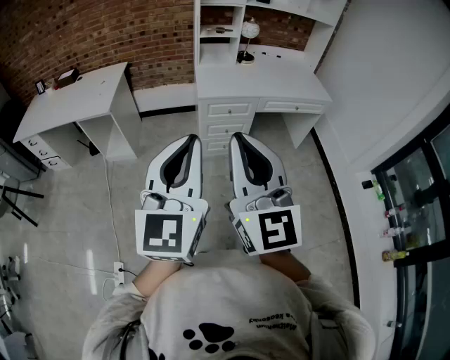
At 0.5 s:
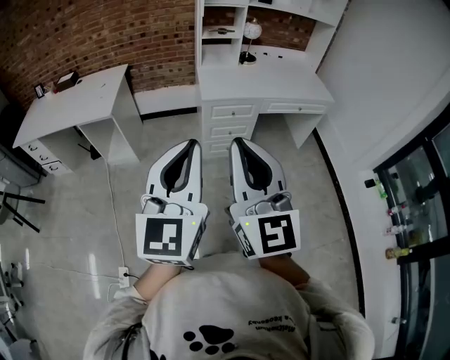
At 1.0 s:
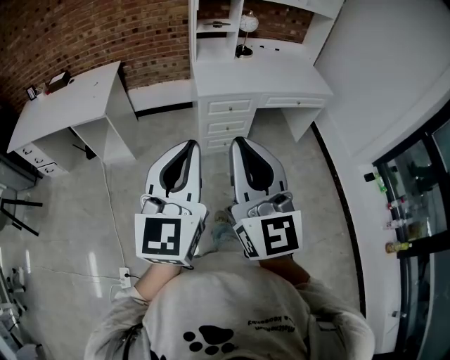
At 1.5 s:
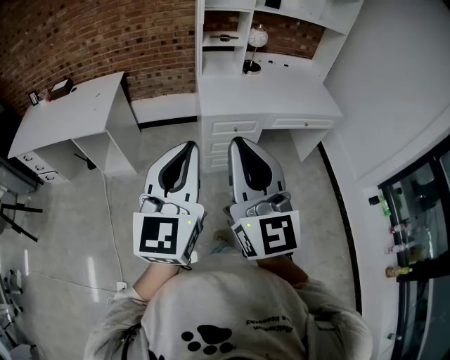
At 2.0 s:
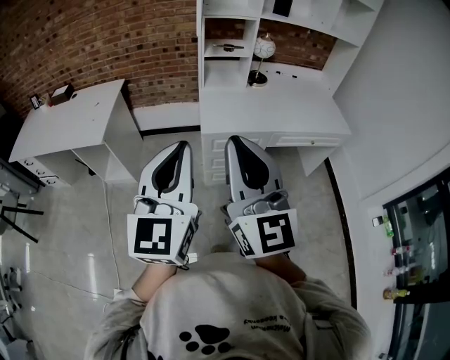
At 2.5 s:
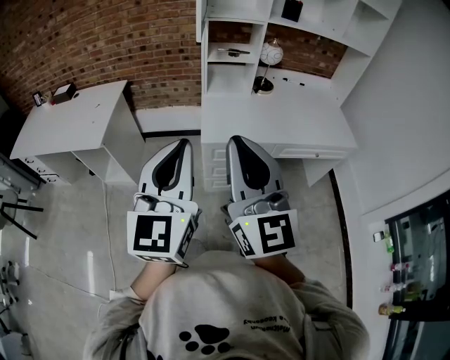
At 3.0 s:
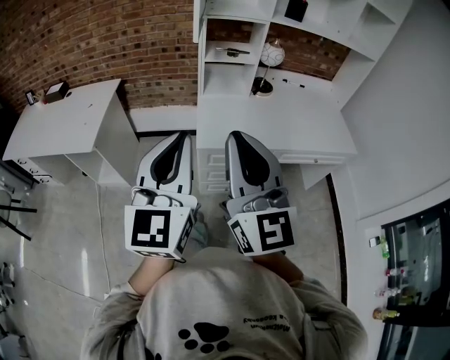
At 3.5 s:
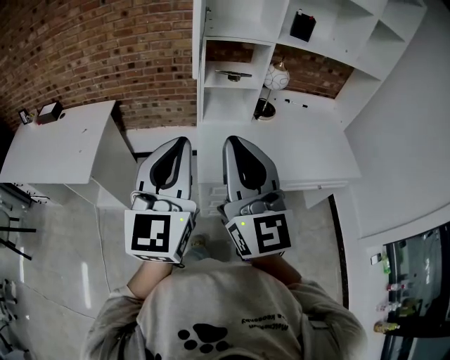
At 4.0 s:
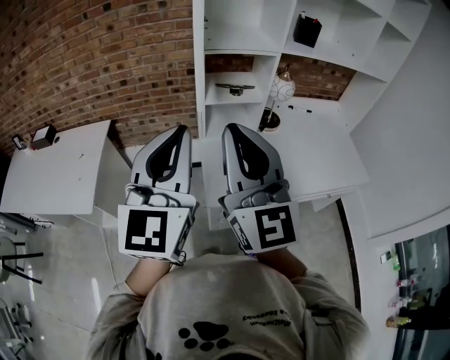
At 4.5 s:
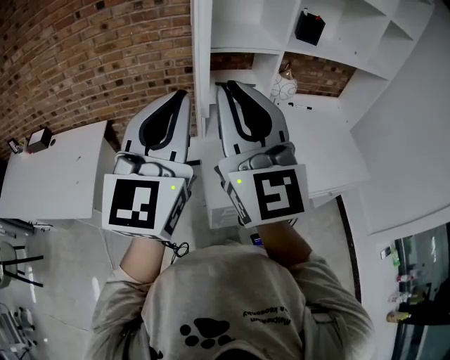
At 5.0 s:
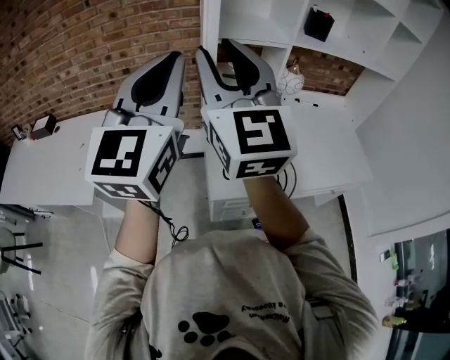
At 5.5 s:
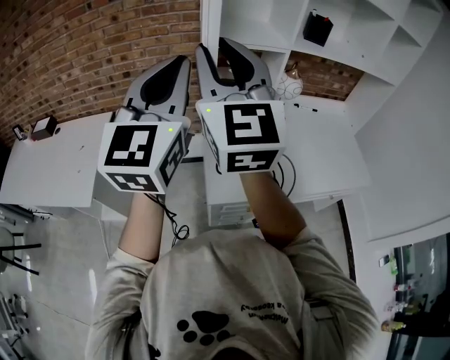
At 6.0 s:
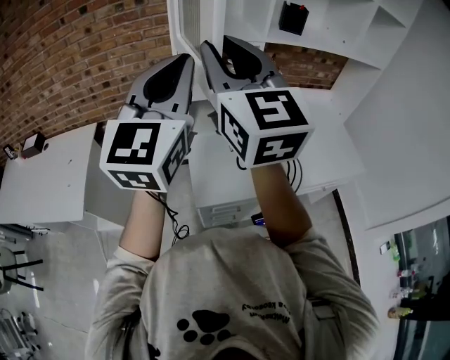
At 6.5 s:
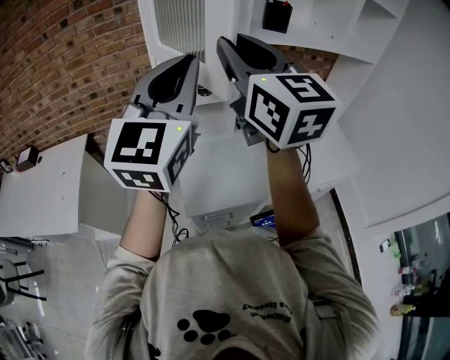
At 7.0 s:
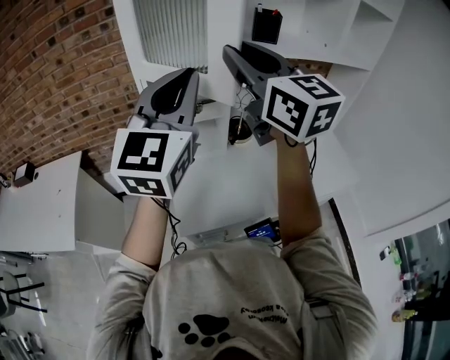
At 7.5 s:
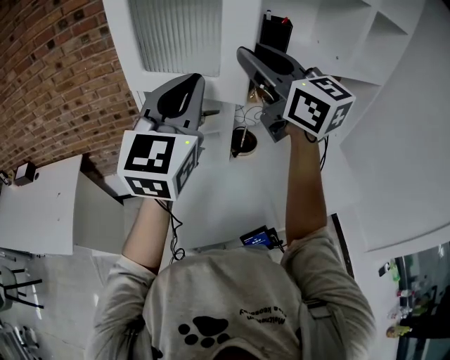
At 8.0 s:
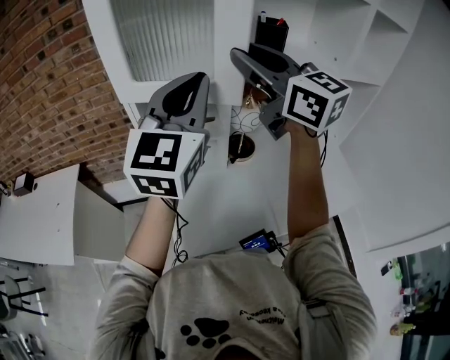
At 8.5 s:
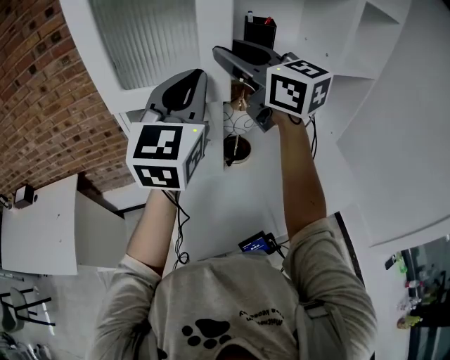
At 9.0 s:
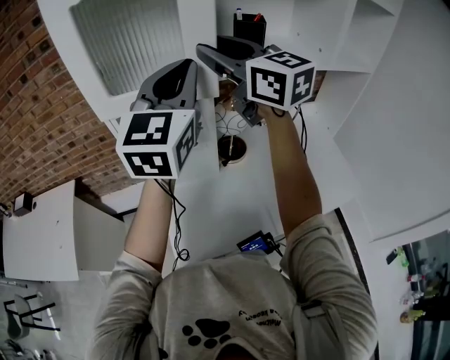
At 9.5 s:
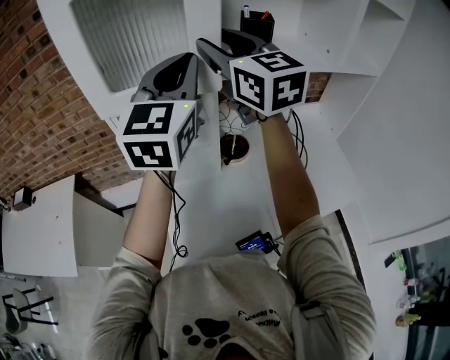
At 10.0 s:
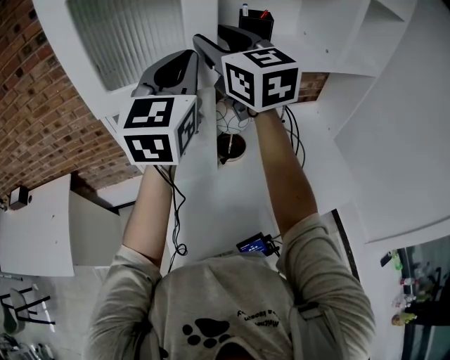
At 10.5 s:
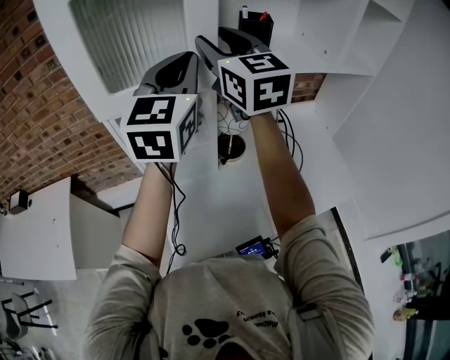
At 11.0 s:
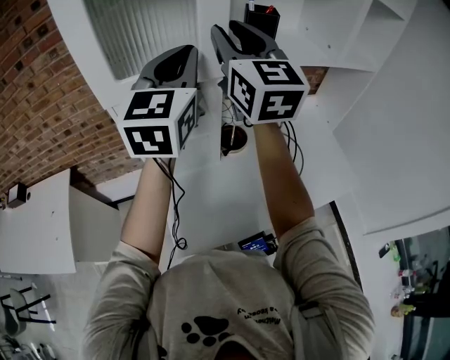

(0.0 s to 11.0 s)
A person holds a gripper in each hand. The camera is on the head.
0.0 s - 2.0 s: Both grippers travel together forward, some 30 cm.
2.0 s - 3.5 s: The grippers both shift forward by approximately 25 cm.
3.5 s - 5.5 s: Both grippers travel together forward and upward, about 25 cm. The right gripper opens its fingers.
5.5 s - 7.5 s: The two grippers go some 30 cm to the right and forward. The right gripper changes its angle by about 20 degrees.
7.5 s - 9.0 s: The left gripper travels forward and to the right by roughly 10 cm, while the right gripper travels forward by roughly 10 cm.
9.0 s - 11.0 s: The right gripper swivels about 30 degrees.

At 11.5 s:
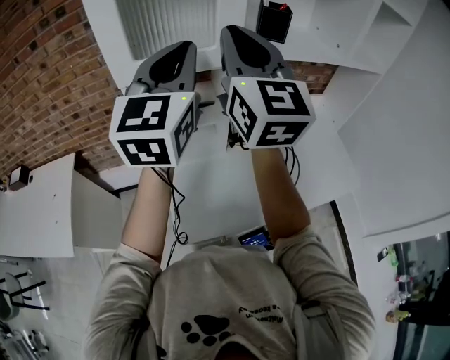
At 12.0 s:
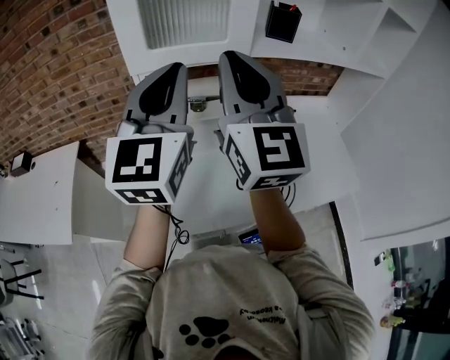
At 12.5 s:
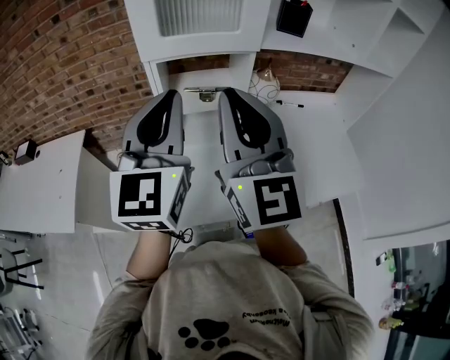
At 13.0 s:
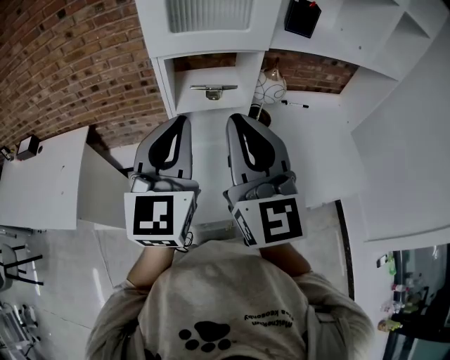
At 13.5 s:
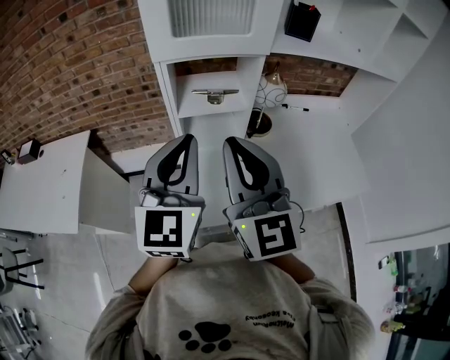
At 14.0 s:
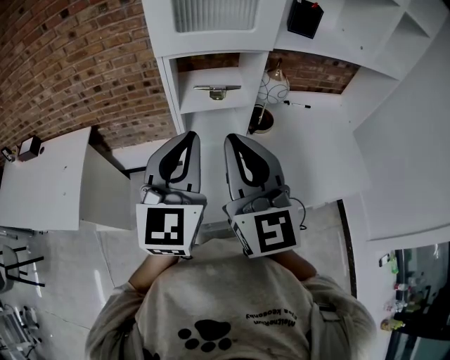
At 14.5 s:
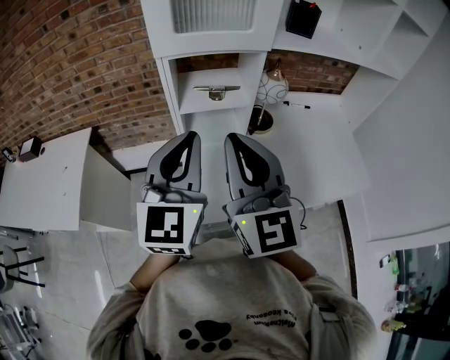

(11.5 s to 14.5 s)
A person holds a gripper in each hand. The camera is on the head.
11.5 s - 13.0 s: The right gripper shifts some 20 cm backward and downward, while the left gripper moves backward, downward and to the left, approximately 20 cm.
13.0 s - 14.5 s: There are only small adjustments of the grippers.

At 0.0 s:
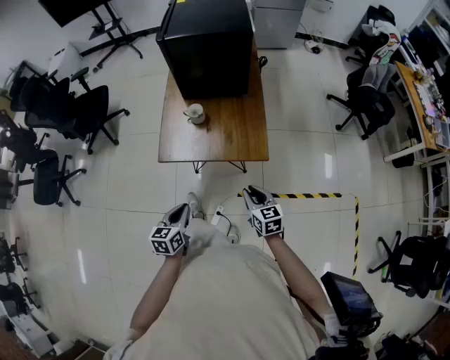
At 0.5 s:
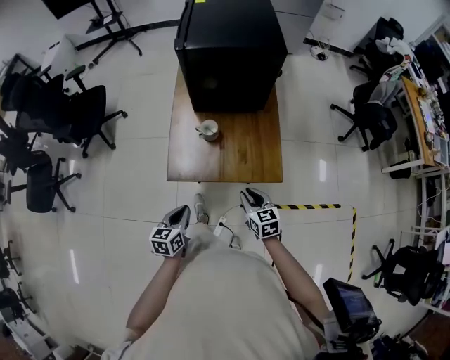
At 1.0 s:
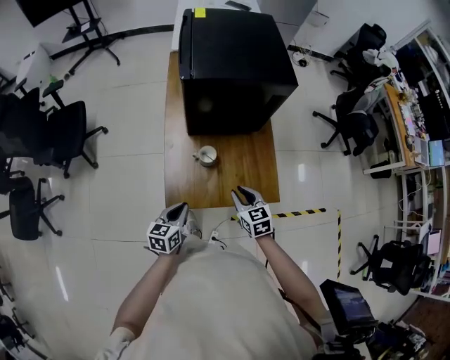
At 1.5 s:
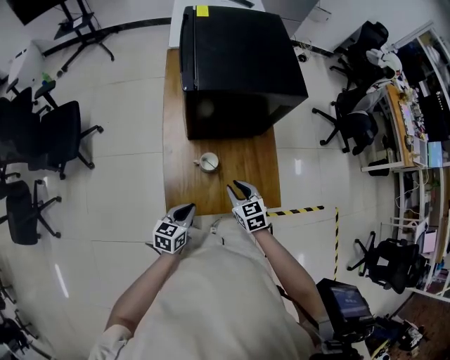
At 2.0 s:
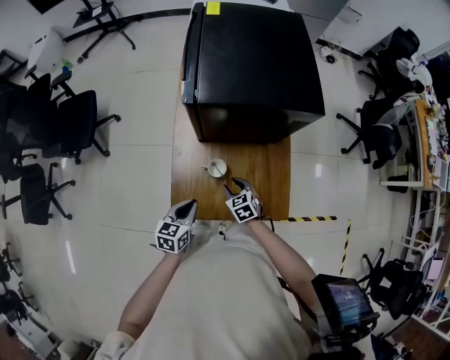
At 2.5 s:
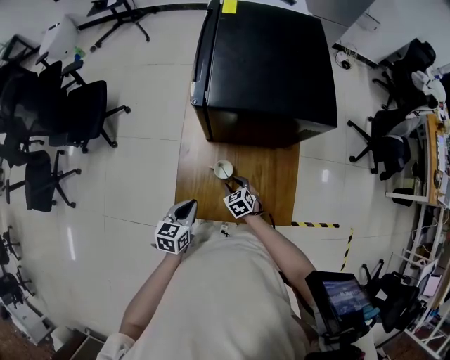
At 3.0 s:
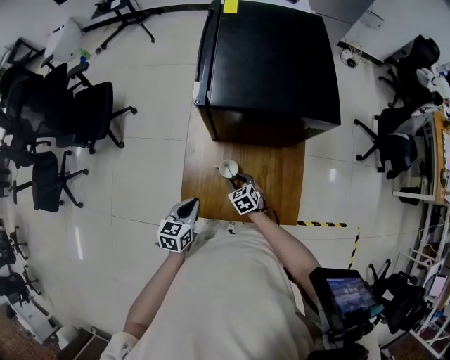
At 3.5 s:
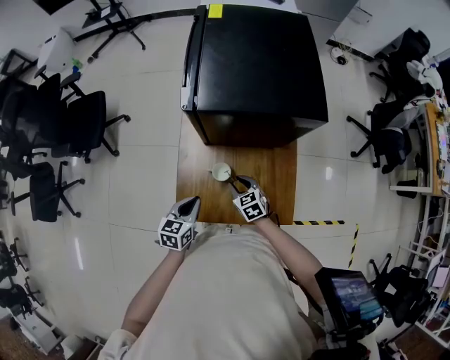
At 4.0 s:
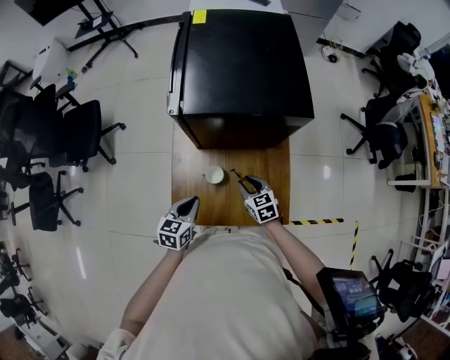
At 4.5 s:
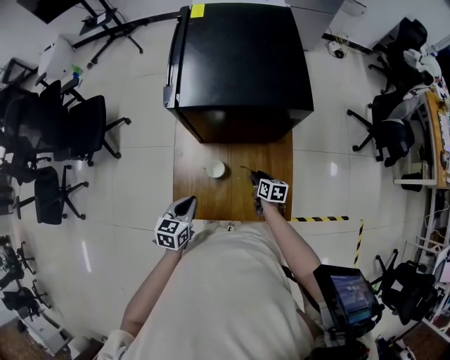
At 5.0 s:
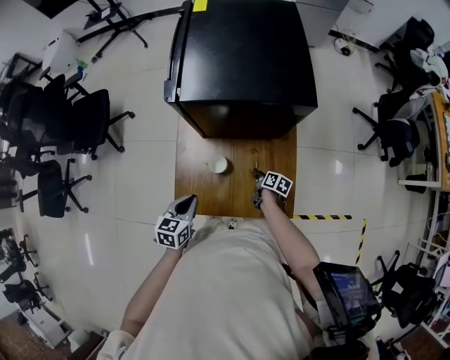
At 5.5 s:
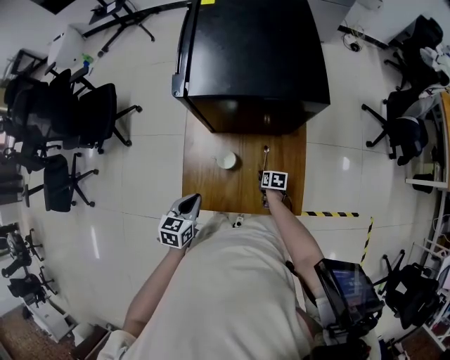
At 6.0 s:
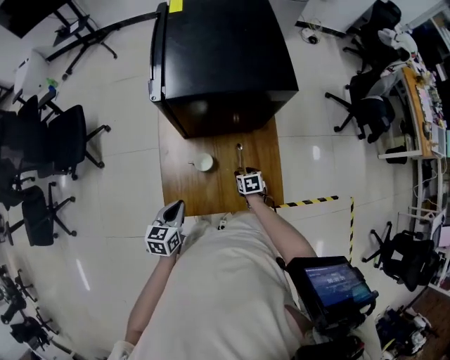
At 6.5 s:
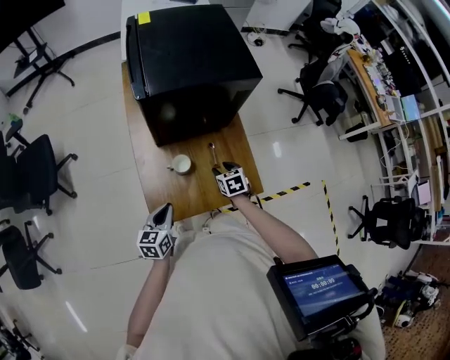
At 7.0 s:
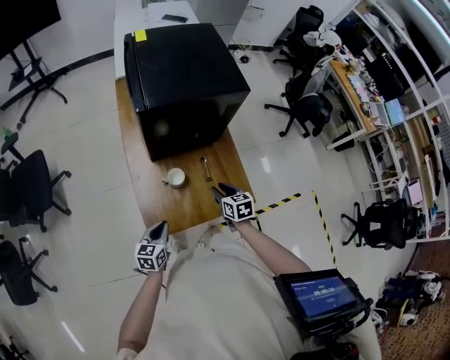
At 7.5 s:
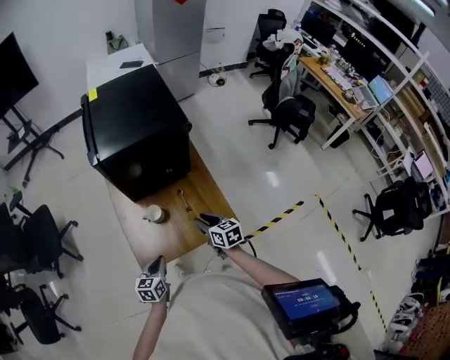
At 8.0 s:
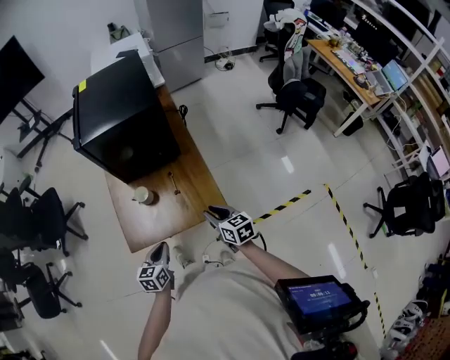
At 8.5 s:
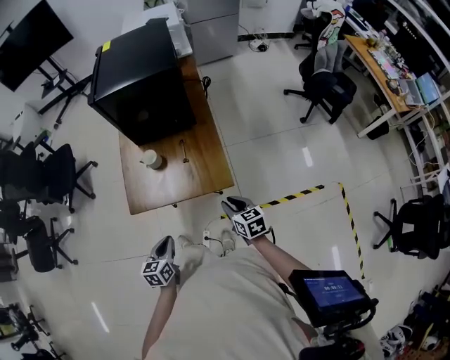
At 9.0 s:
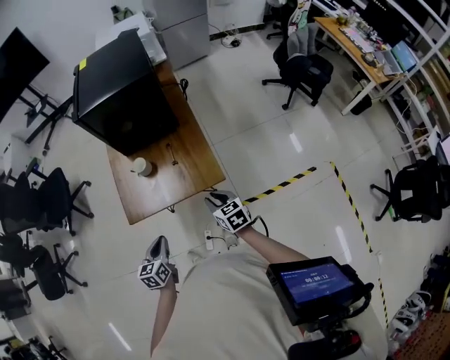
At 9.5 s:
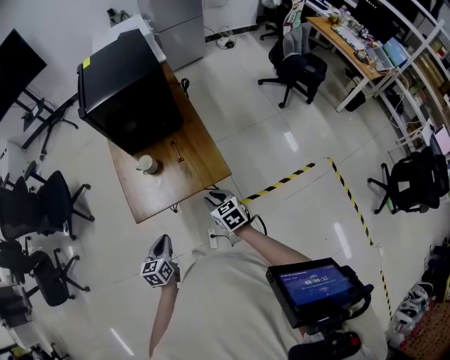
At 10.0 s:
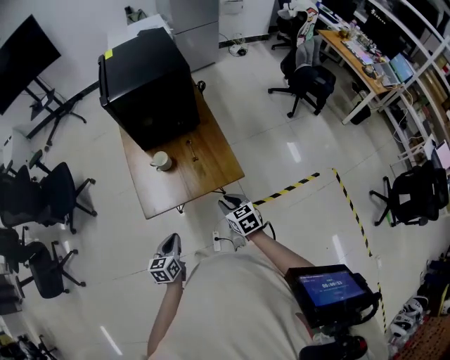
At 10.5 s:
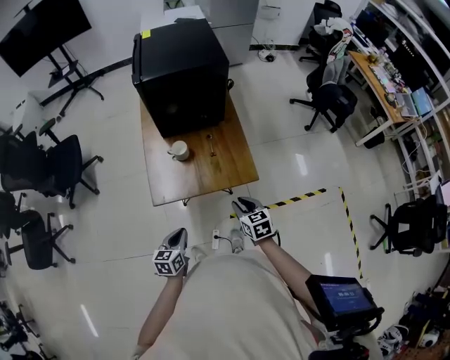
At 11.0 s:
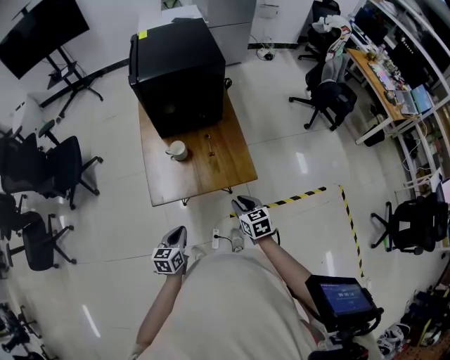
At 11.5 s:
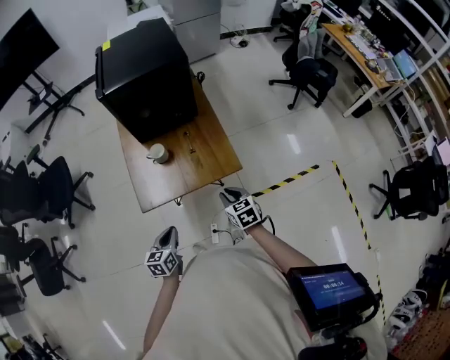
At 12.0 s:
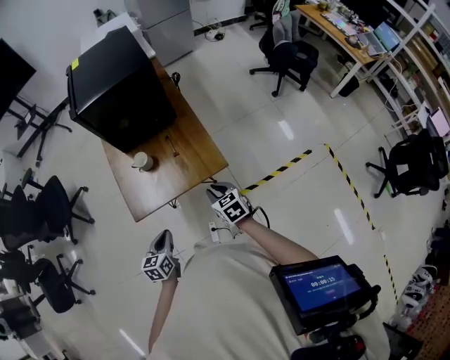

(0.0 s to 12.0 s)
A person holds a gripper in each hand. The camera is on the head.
0.0 s - 2.0 s: The right gripper is displaced forward and to the left by approximately 40 cm, and rotates about 30 degrees. Meanwhile the left gripper is displaced forward by about 35 cm.
2.0 s - 4.0 s: The right gripper shifts about 5 cm to the right.
4.0 s - 6.0 s: The right gripper moves downward, about 15 cm, and rotates approximately 30 degrees. The left gripper travels to the left by about 5 cm.
6.0 s - 8.0 s: The right gripper heads upward, backward and to the right, covering about 30 cm, points its fingers about 40 degrees further upward, and closes up. The left gripper is displaced to the right and backward by approximately 20 cm.
8.0 s - 10.0 s: The grippers both shift backward and to the left by some 15 cm.
10.0 s - 12.0 s: The grippers move only a little.

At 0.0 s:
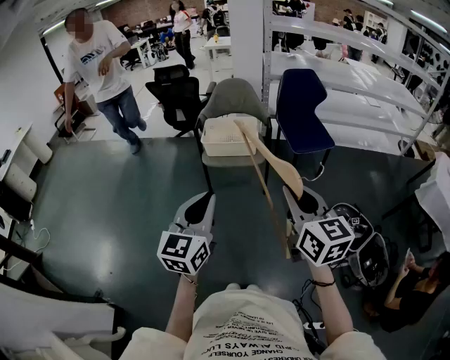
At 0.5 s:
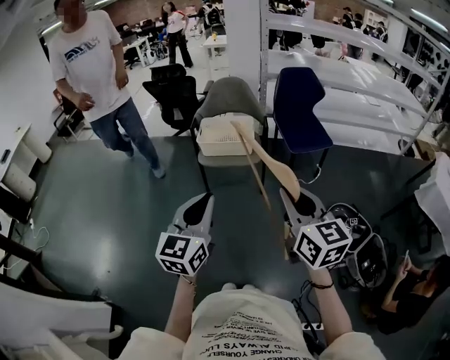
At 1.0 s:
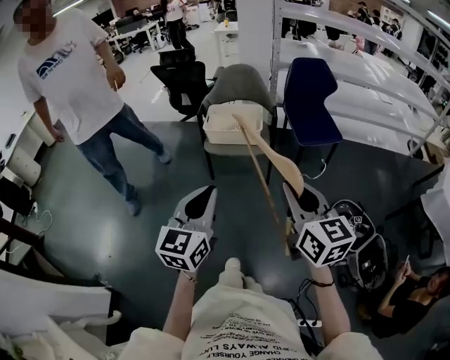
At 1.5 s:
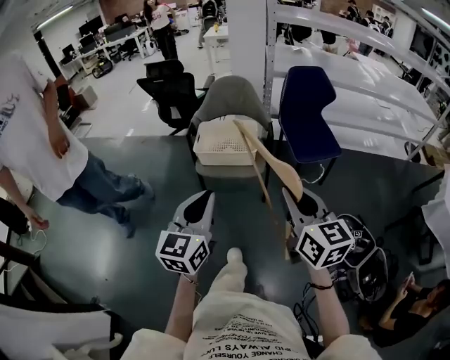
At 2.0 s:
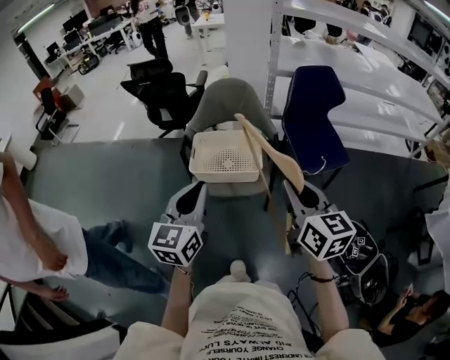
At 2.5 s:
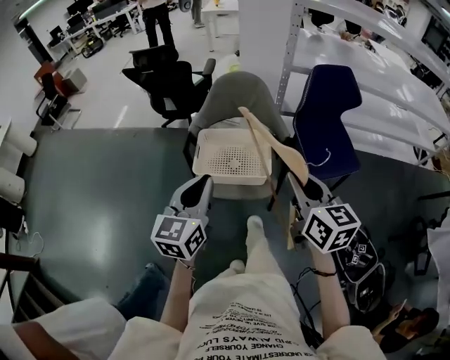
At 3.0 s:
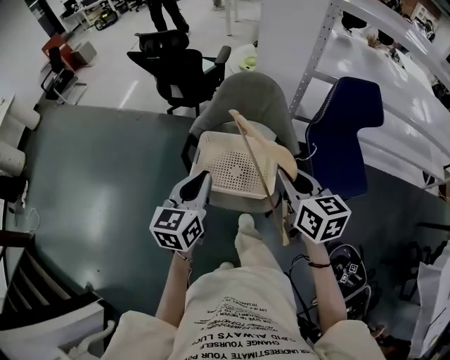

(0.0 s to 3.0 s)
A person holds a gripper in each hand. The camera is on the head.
0.0 s - 1.5 s: Both grippers travel together forward, approximately 15 cm.
1.5 s - 3.0 s: The two grippers travel together, forward, about 40 cm.
